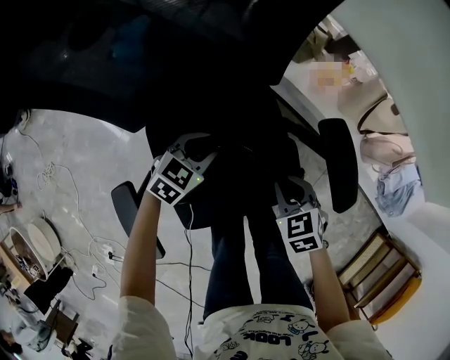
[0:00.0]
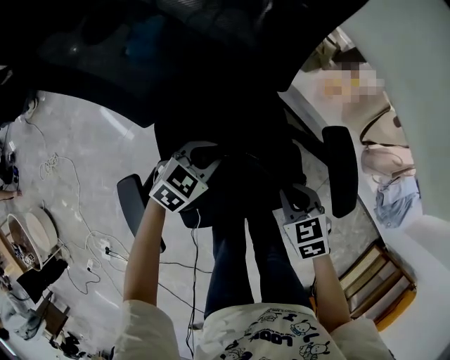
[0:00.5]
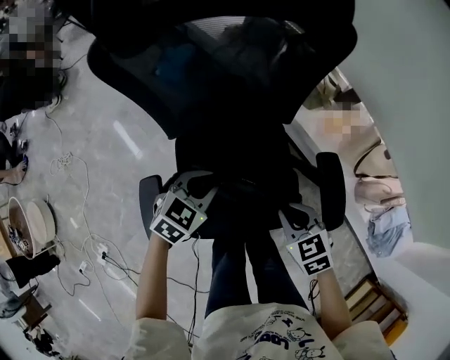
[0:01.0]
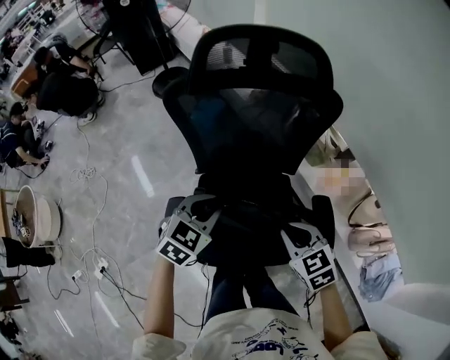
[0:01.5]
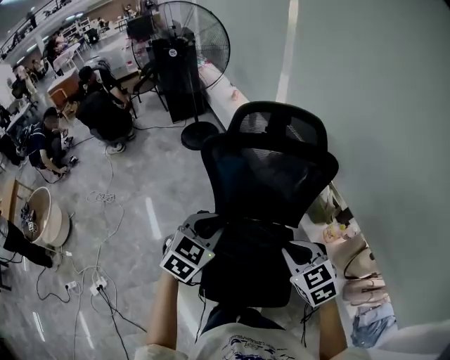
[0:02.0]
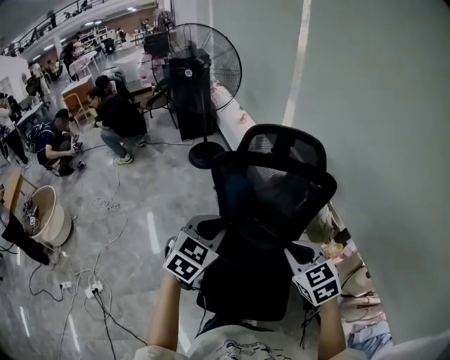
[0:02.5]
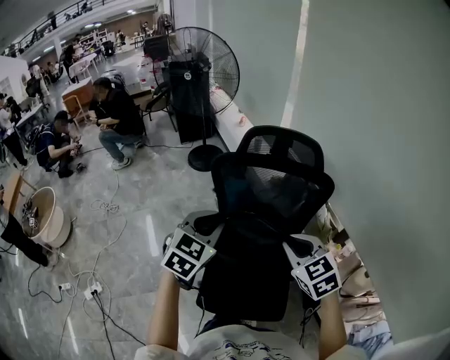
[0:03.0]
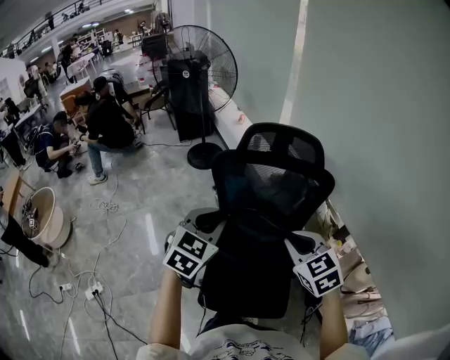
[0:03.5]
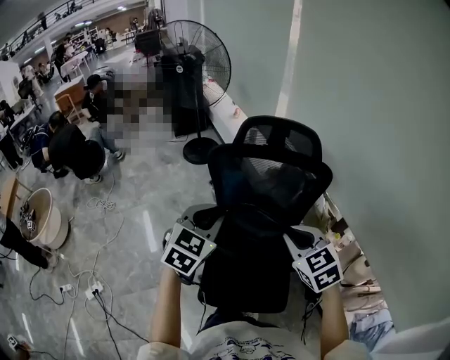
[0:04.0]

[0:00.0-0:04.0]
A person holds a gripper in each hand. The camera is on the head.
0:00.0 to 0:02.0: Both grippers move upward, roughly 40 cm. The left gripper changes its angle by roughly 40 degrees, while the right gripper changes its angle by some 40 degrees.
0:02.0 to 0:04.0: The two grippers go roughly 5 cm upward.

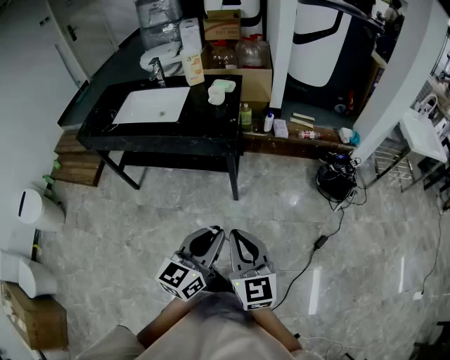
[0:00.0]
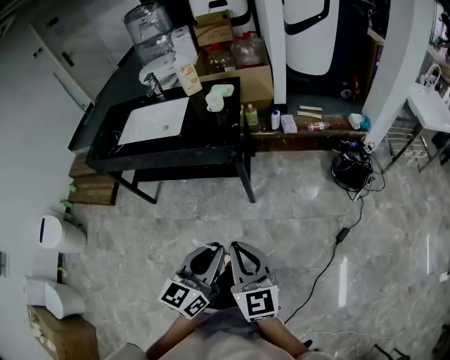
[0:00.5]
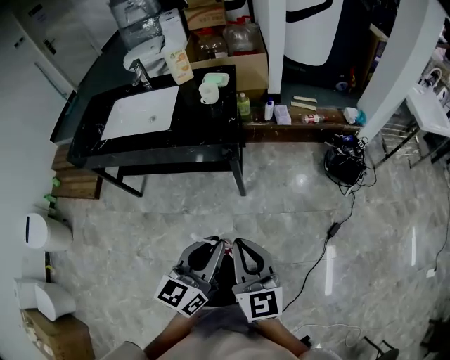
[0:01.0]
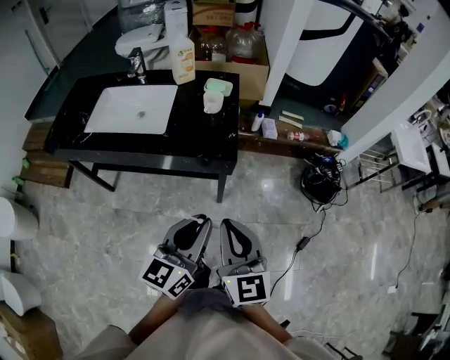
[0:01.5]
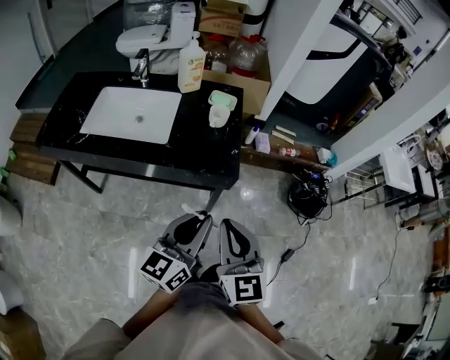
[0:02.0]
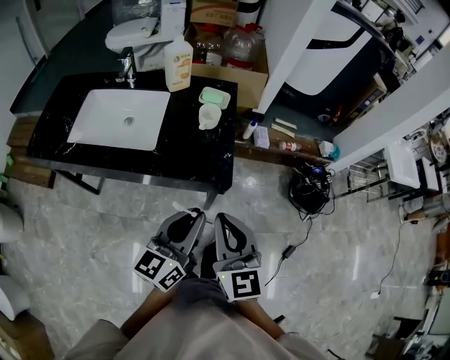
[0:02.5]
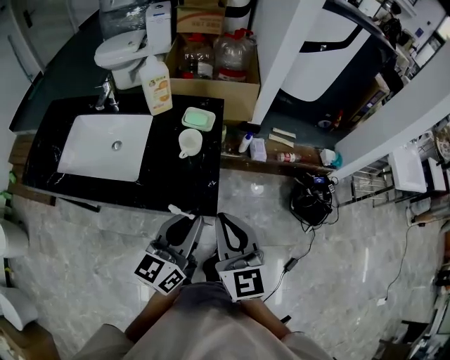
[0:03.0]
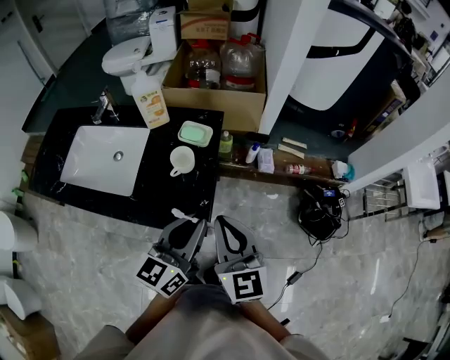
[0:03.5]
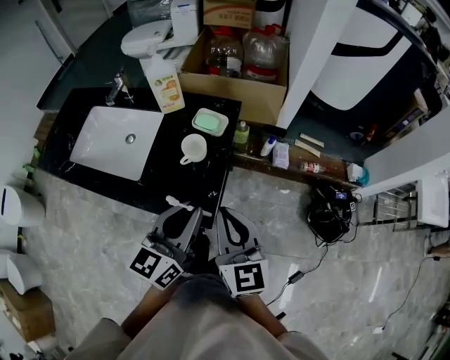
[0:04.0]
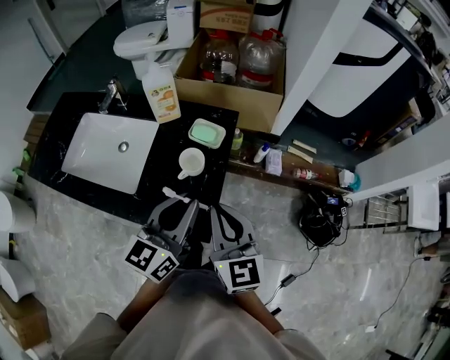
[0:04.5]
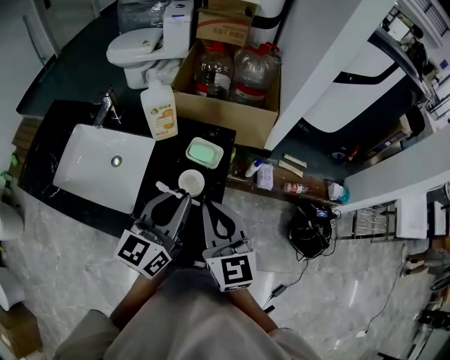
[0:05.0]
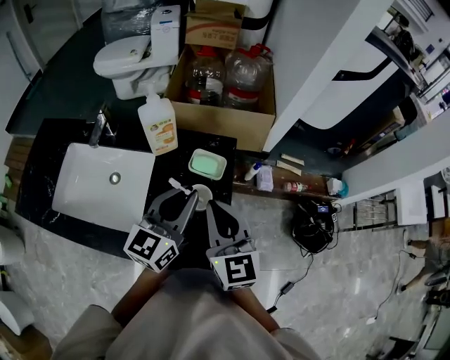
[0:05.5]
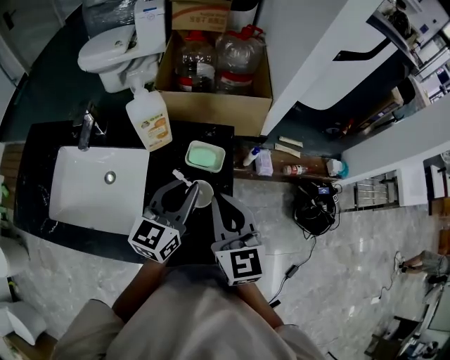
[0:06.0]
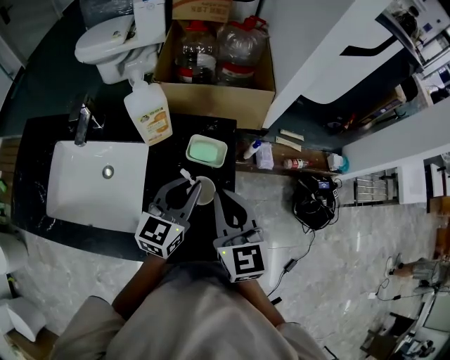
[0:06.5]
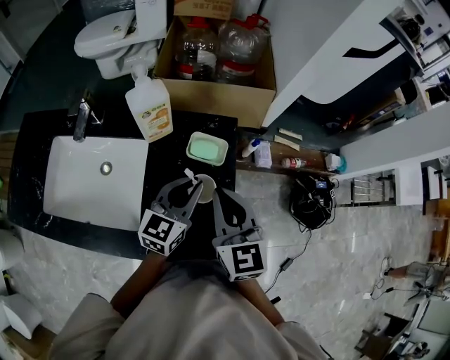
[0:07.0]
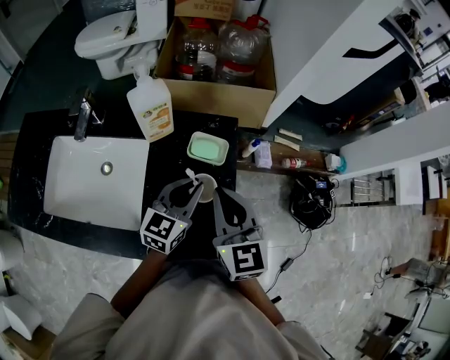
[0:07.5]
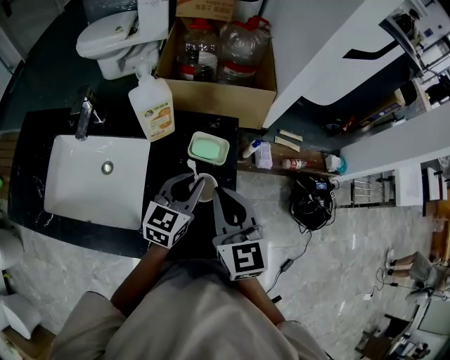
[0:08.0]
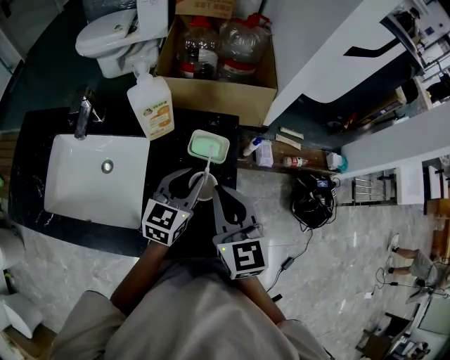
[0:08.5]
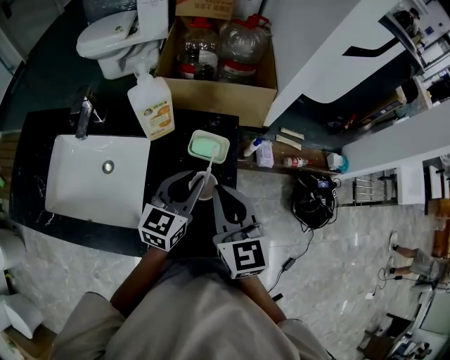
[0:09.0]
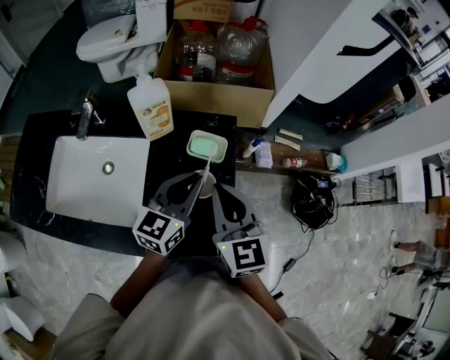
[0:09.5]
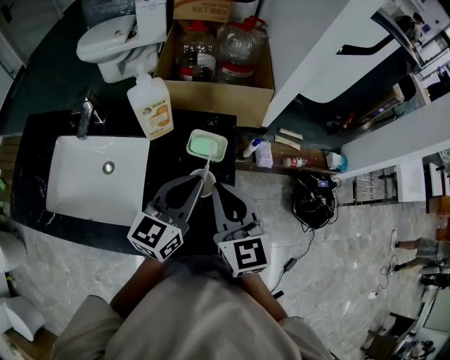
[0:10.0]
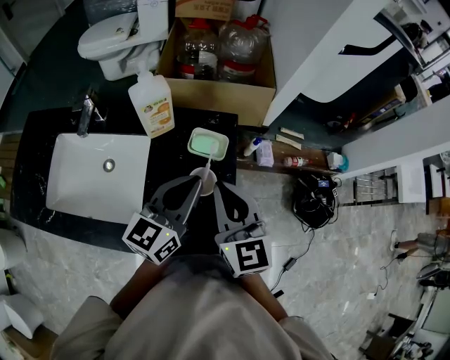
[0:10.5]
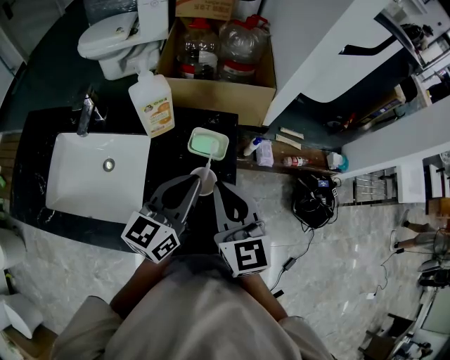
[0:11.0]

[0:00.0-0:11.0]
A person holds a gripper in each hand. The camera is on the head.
0:00.0 to 0:02.0: The two grippers go approximately 25 cm forward and to the left.
0:02.0 to 0:03.5: Both grippers travel together forward and to the right, some 25 cm.
0:03.5 to 0:05.5: The grippers both shift forward and to the left by some 20 cm.
0:05.5 to 0:07.5: The left gripper travels downward by approximately 10 cm.
0:07.5 to 0:09.0: The grippers stay close to where they were, moving slightly.
0:09.0 to 0:11.0: The left gripper goes some 5 cm upward.

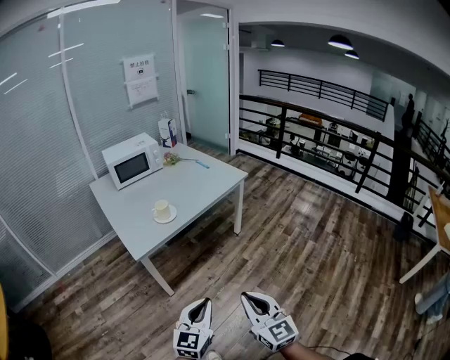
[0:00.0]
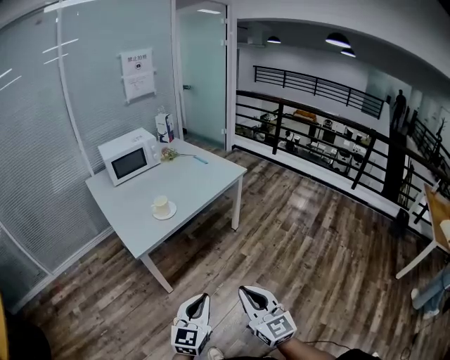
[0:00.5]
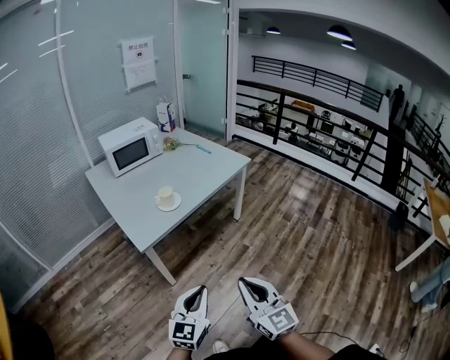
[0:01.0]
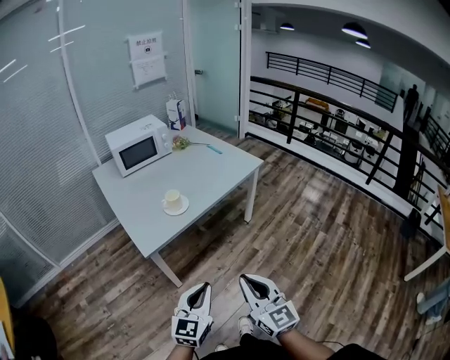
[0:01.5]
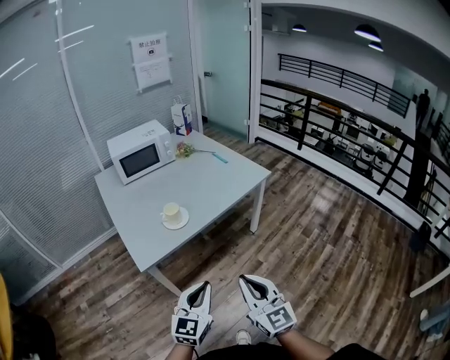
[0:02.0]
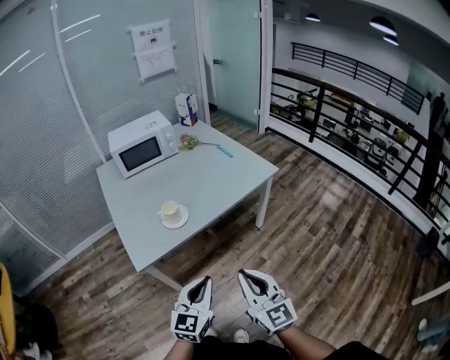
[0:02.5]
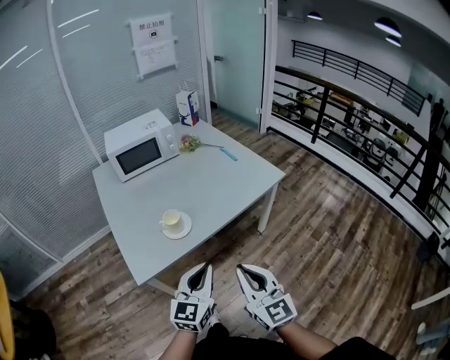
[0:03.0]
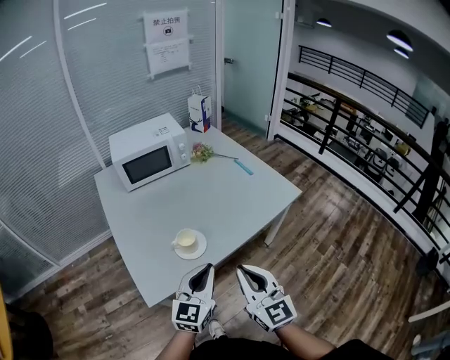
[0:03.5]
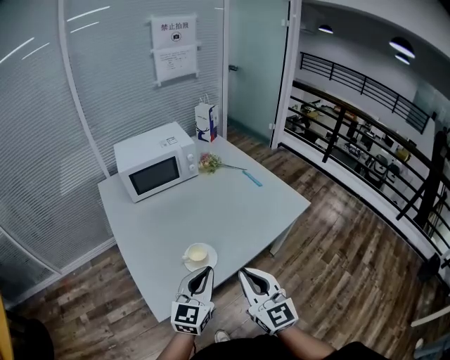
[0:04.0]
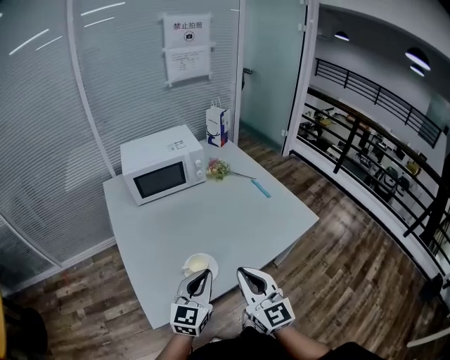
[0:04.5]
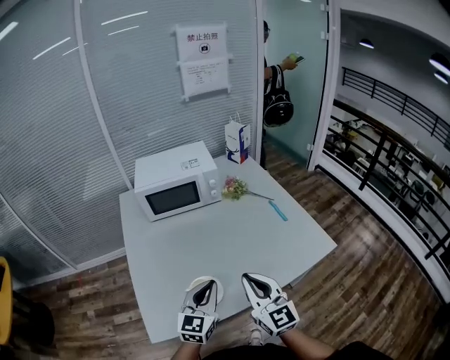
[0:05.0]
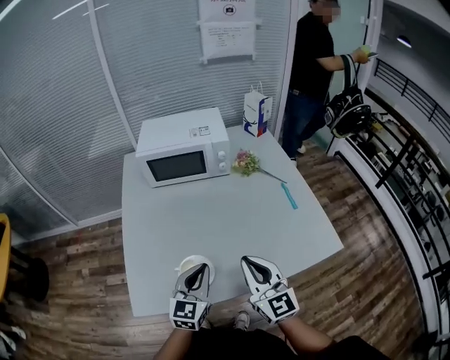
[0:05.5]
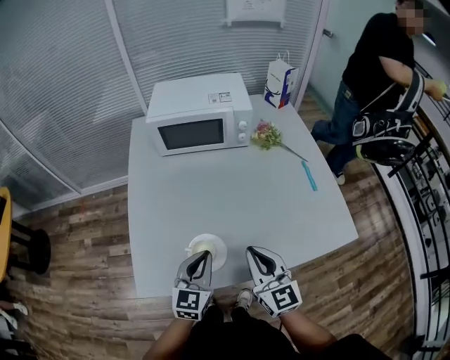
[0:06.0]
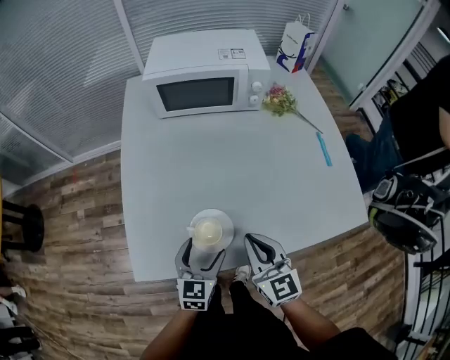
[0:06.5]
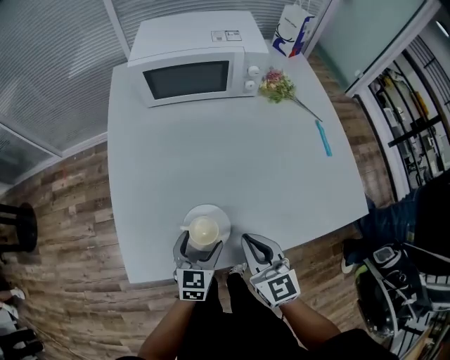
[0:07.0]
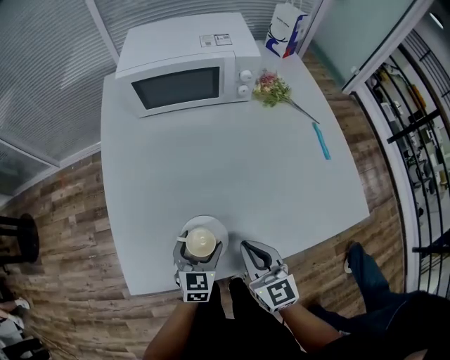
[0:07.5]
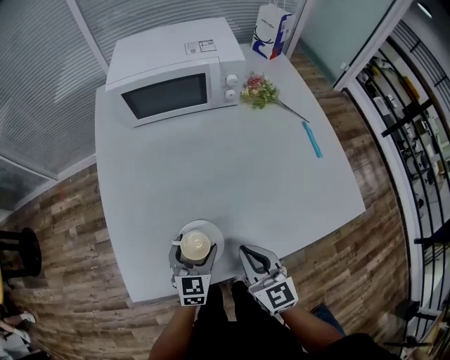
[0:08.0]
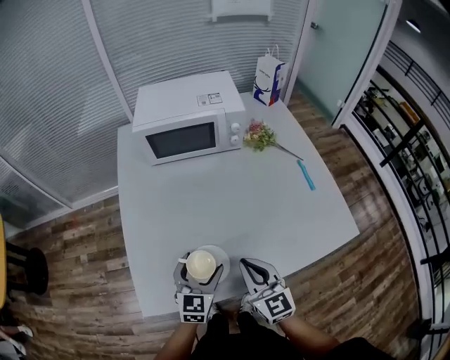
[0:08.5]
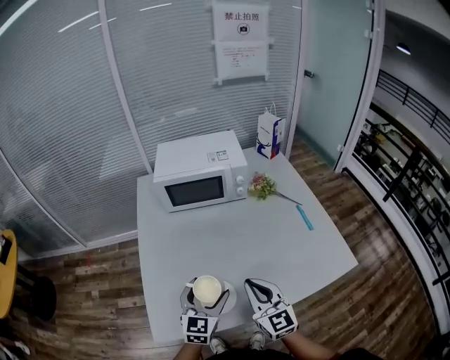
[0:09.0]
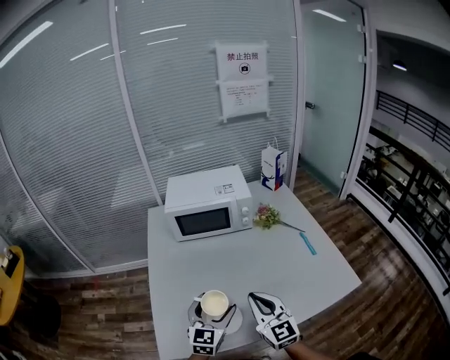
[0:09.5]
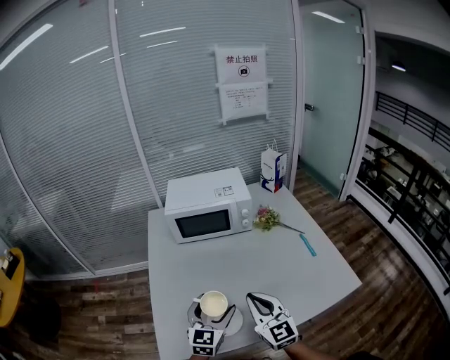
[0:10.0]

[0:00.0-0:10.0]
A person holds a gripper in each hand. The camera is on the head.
0:00.0 to 0:02.0: The grippers both shift forward by approximately 20 cm.
0:02.0 to 0:04.0: Both grippers travel together forward, about 30 cm.
0:04.0 to 0:06.0: Both grippers travel together forward and downward, about 20 cm. The left gripper swivels approximately 30 degrees; the right gripper swivels approximately 20 degrees.
0:06.0 to 0:08.0: Both grippers travel together downward, about 15 cm. The left gripper opens.
0:08.0 to 0:10.0: The grippers both shift upward by roughly 20 cm. The right gripper changes its angle by roughly 20 degrees.

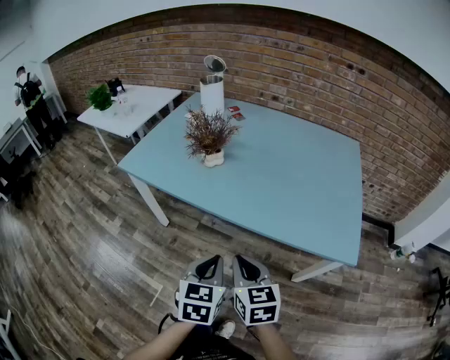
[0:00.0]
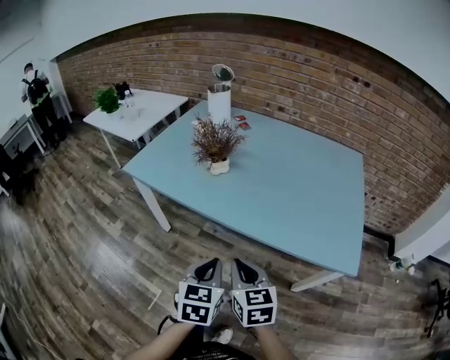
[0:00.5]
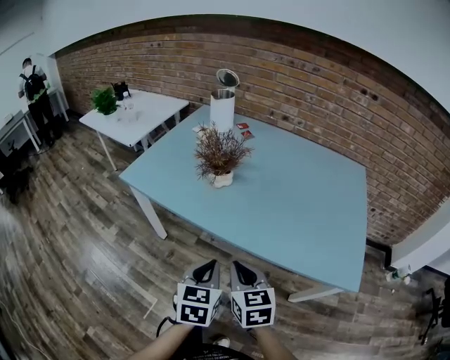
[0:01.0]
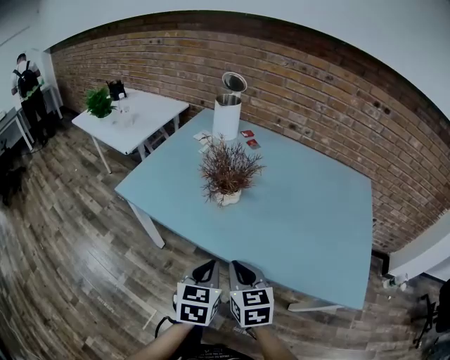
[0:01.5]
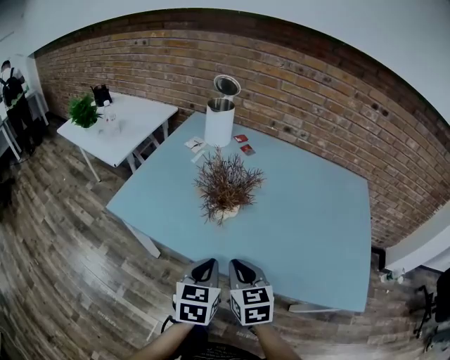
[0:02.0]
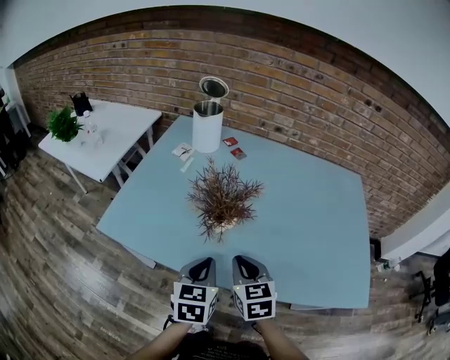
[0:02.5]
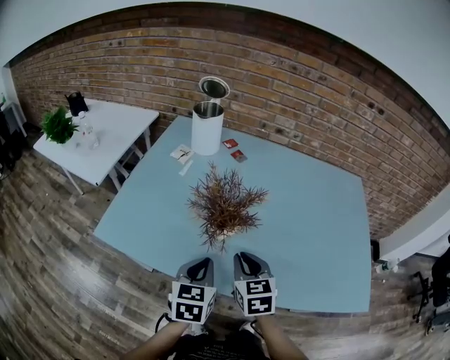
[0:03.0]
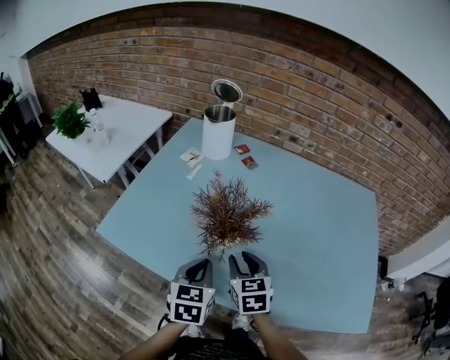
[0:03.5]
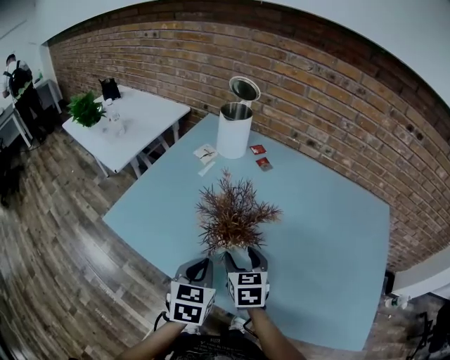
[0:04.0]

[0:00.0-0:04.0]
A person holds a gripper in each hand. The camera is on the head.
0:00.0 to 0:02.0: Both grippers move forward and to the left, roughly 25 cm.
0:02.0 to 0:04.0: The two grippers go roughly 15 cm forward. The right gripper opens its fingers.
